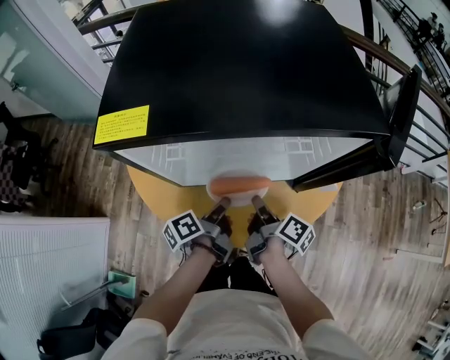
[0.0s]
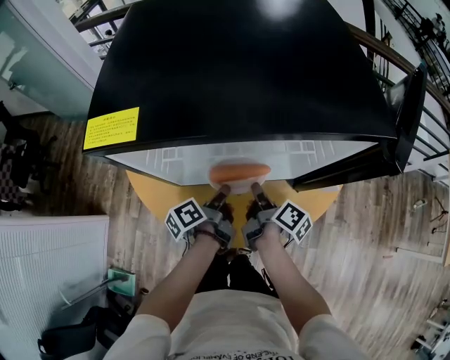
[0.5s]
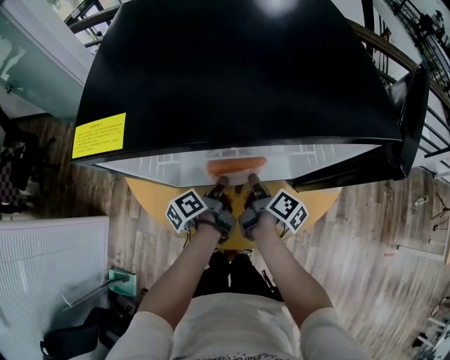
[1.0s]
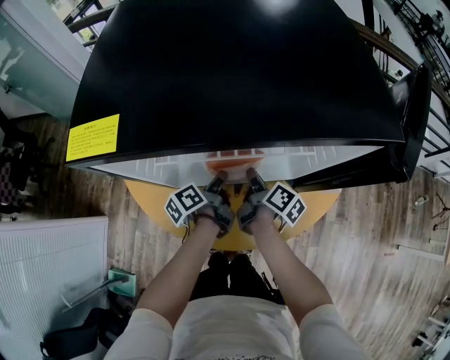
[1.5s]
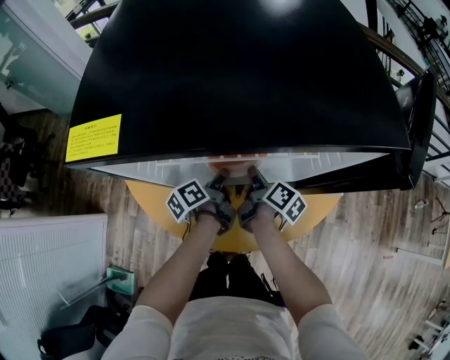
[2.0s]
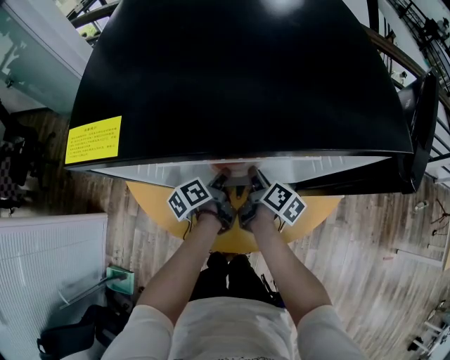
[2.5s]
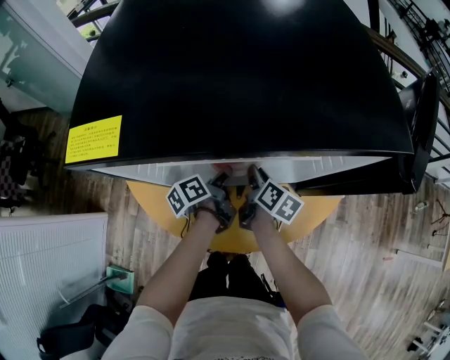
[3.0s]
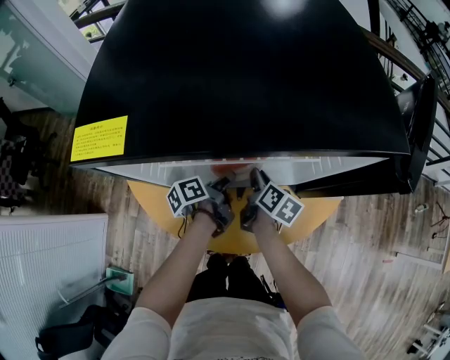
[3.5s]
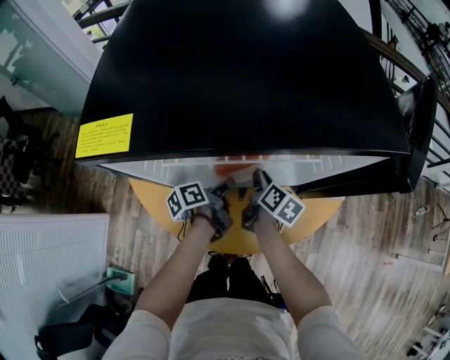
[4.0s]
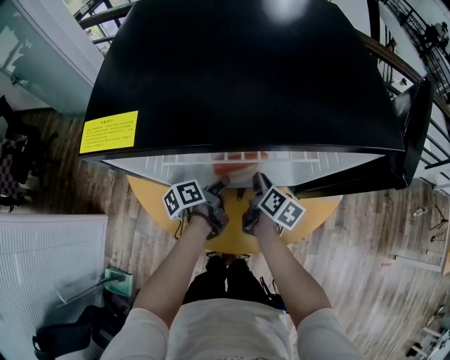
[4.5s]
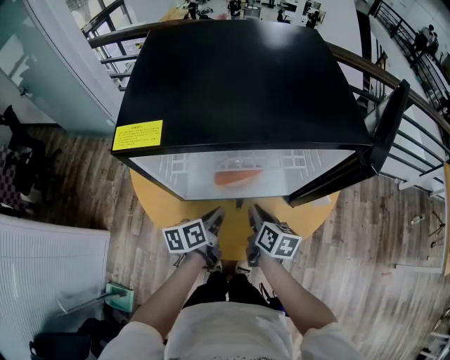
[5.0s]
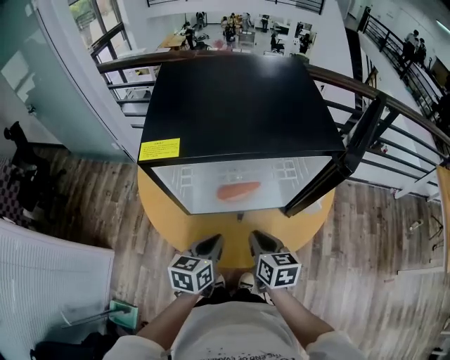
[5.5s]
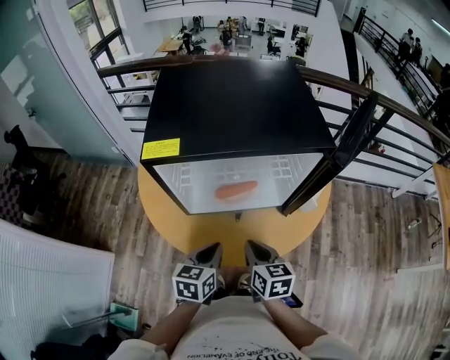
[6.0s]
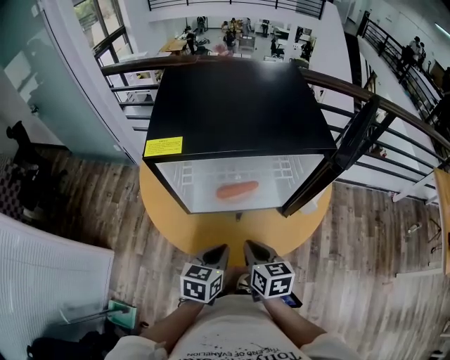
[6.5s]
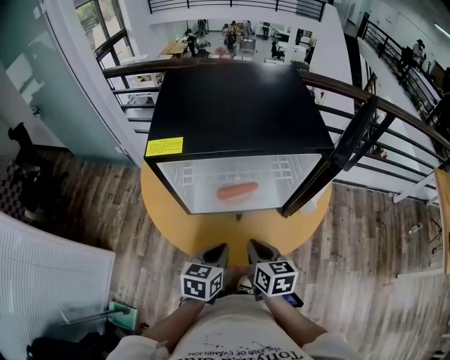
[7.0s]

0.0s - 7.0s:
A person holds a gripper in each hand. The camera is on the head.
0.0s - 2.0s: The right gripper ends up some 10 cm from where it was.
3.5s - 5.0s: The right gripper ends up some 10 cm from where it was.
5.0s - 7.0s: The right gripper changes place by about 15 cm.

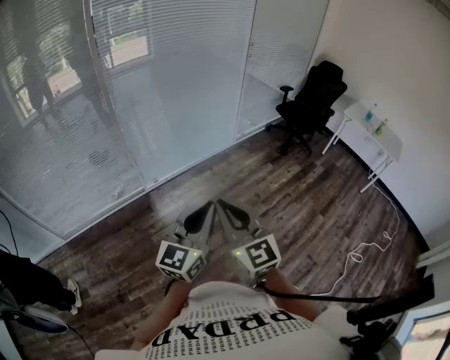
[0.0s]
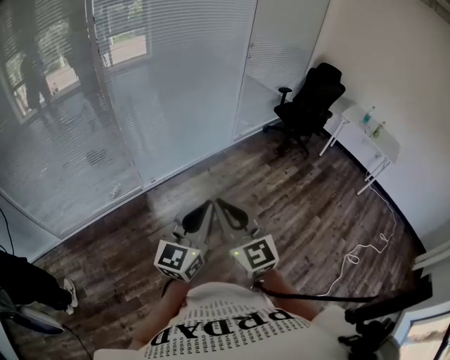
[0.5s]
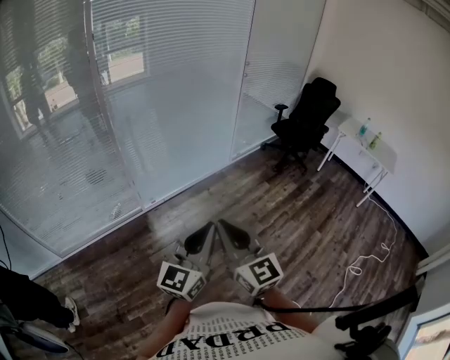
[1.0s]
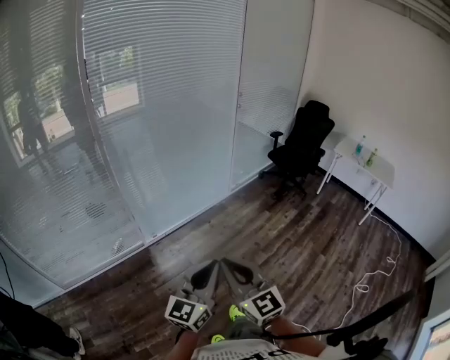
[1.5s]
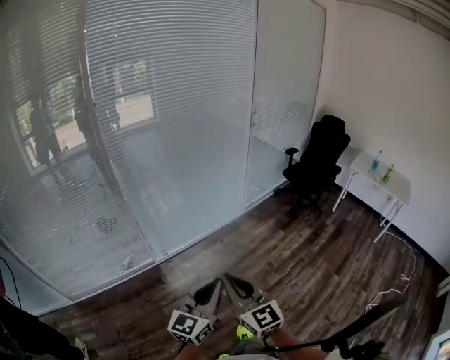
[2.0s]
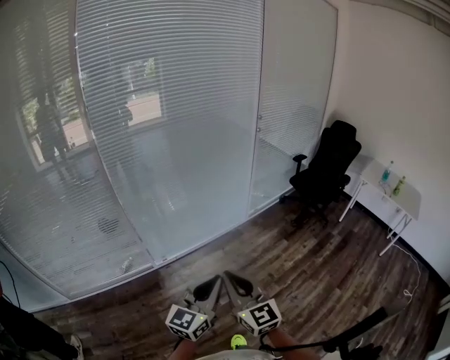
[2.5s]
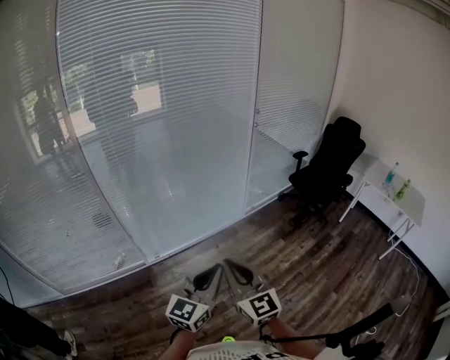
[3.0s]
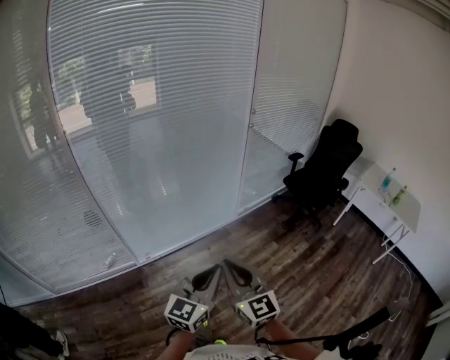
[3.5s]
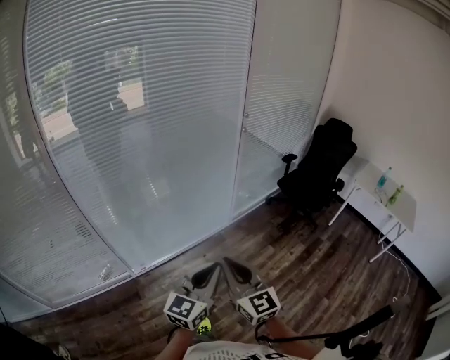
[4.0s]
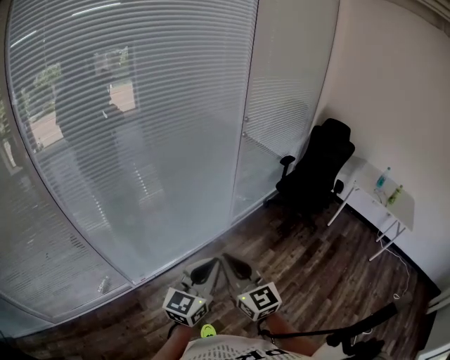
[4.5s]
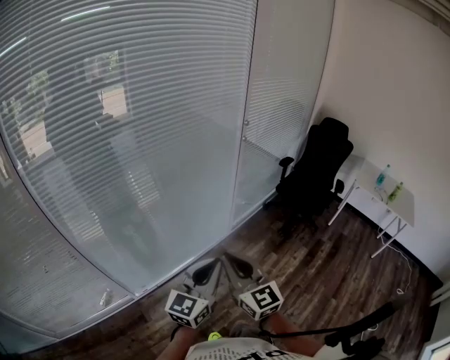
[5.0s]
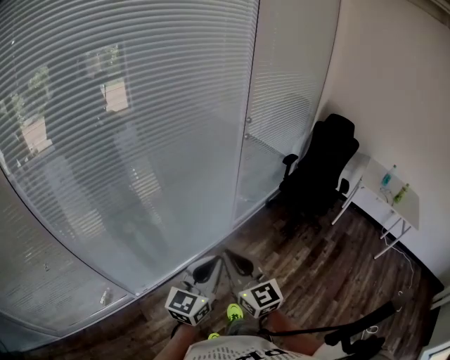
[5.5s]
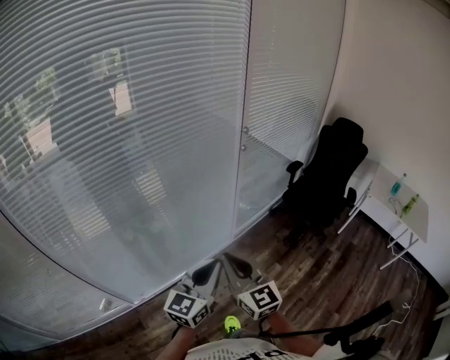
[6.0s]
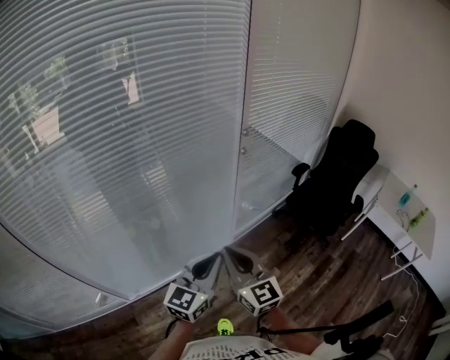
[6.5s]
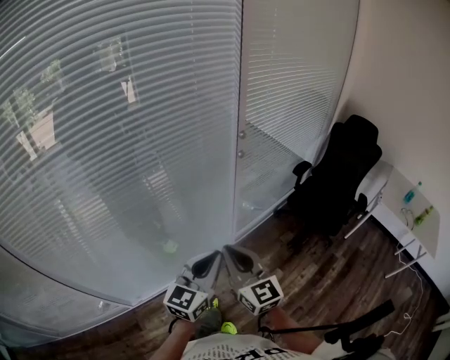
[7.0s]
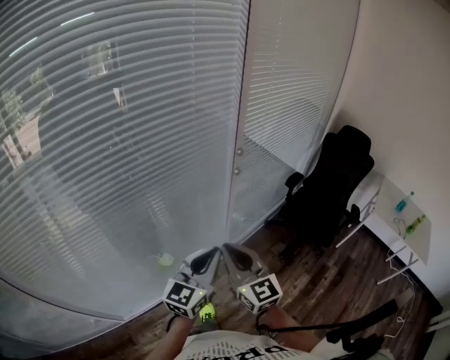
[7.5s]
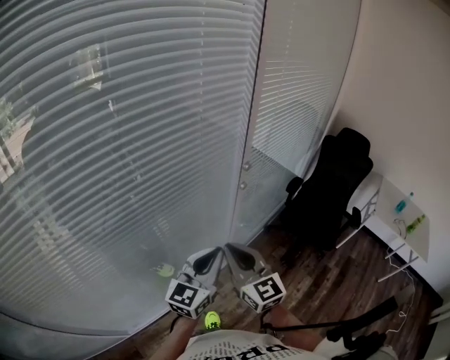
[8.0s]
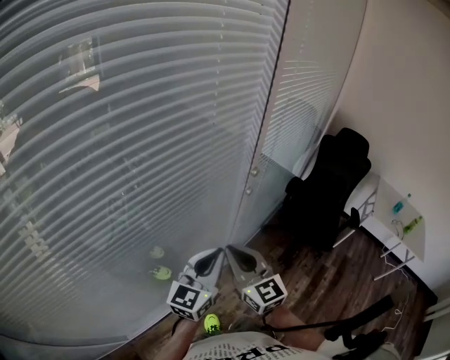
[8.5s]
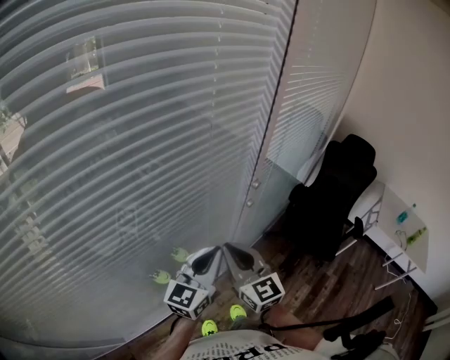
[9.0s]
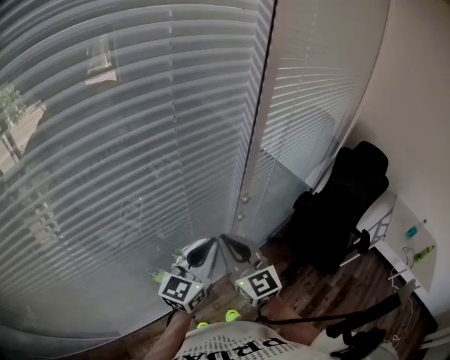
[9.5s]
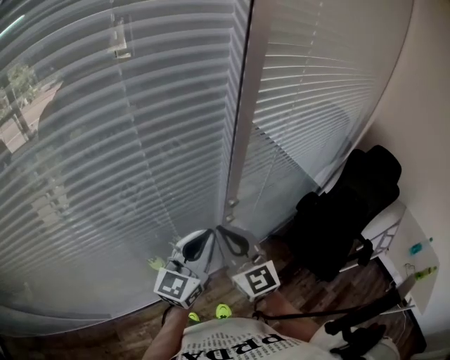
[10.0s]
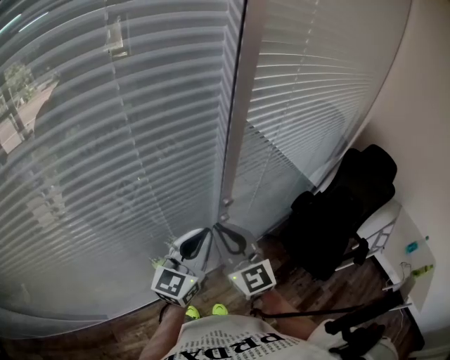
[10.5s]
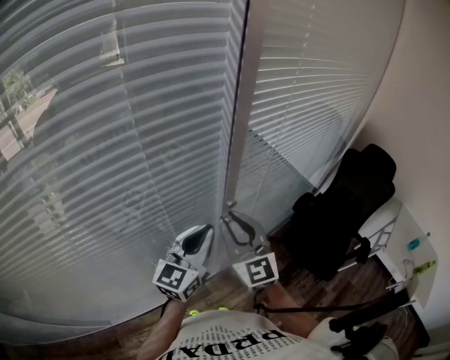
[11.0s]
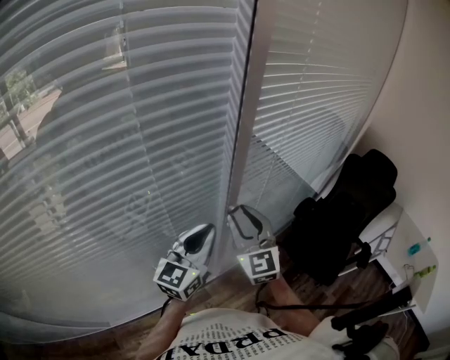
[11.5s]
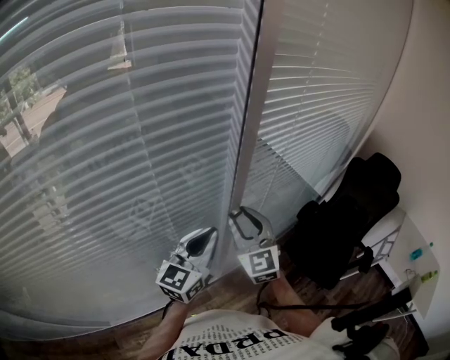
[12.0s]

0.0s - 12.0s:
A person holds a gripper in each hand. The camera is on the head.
0.0s - 2.0s: The grippers both shift forward by about 10 cm.
2.0s - 4.0s: Both grippers move forward and to the right, roughly 35 cm.
4.0s - 6.0s: The two grippers go about 30 cm forward.
6.0s - 8.0s: Both grippers travel together forward, about 30 cm.
8.0s - 10.0s: Both grippers move forward, some 20 cm.
10.0s - 12.0s: The right gripper travels forward by some 10 cm, and opens.

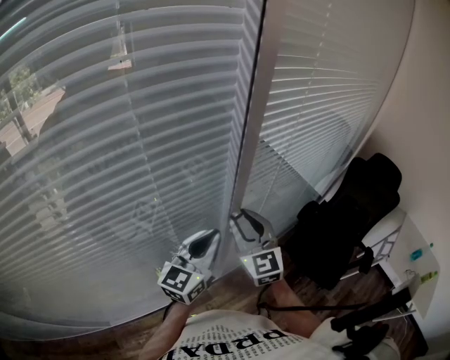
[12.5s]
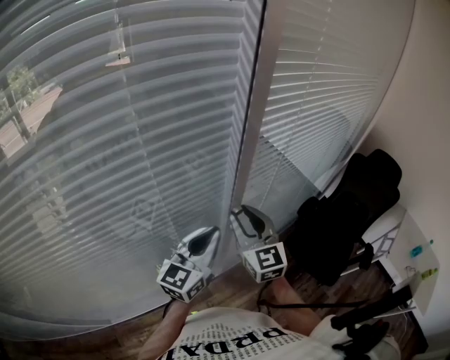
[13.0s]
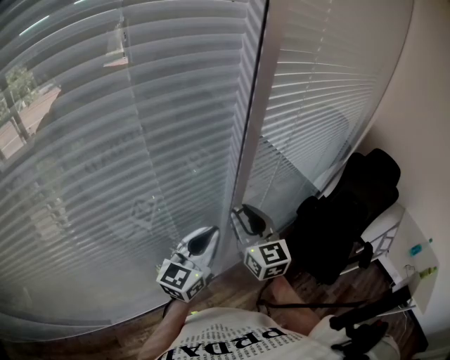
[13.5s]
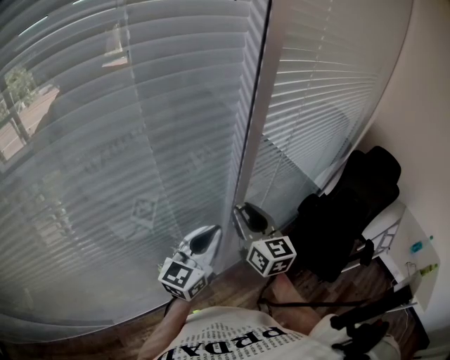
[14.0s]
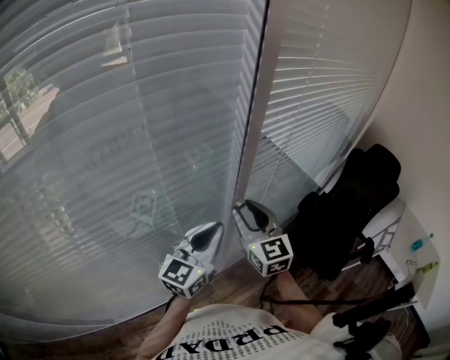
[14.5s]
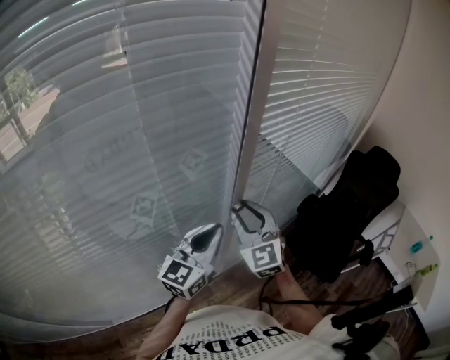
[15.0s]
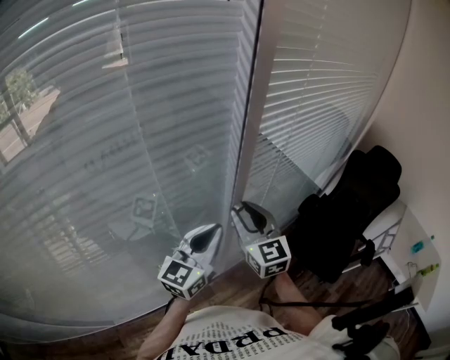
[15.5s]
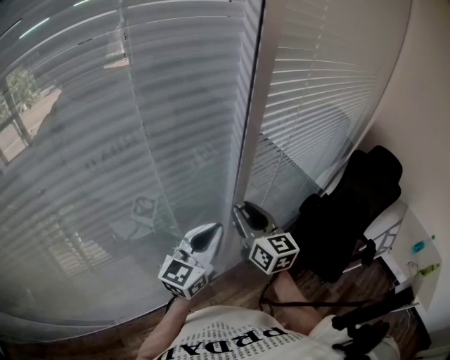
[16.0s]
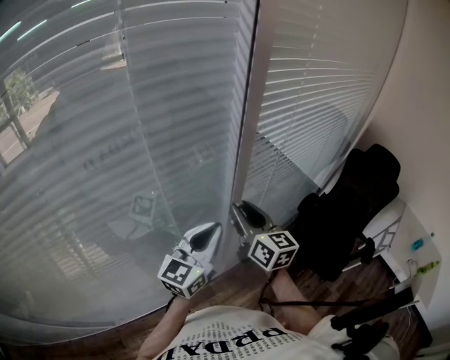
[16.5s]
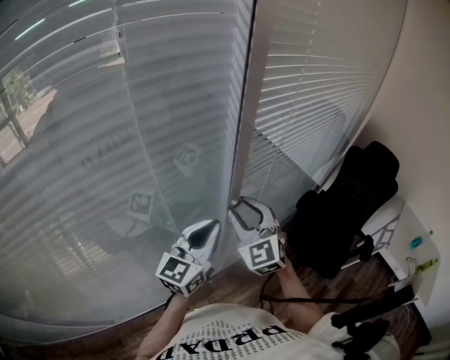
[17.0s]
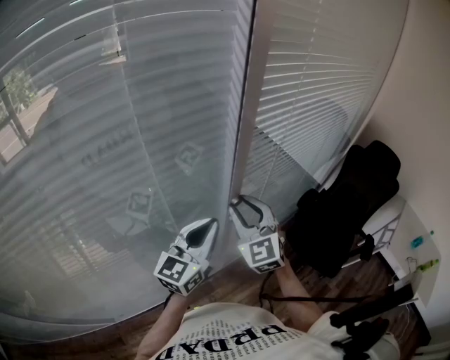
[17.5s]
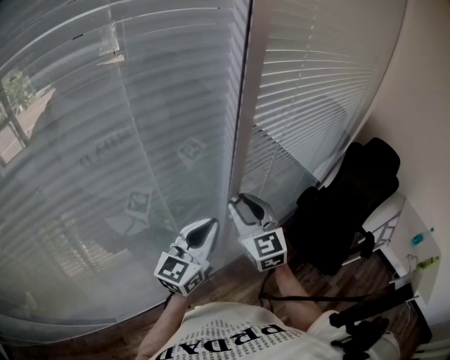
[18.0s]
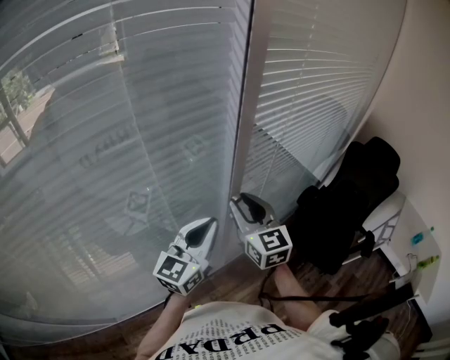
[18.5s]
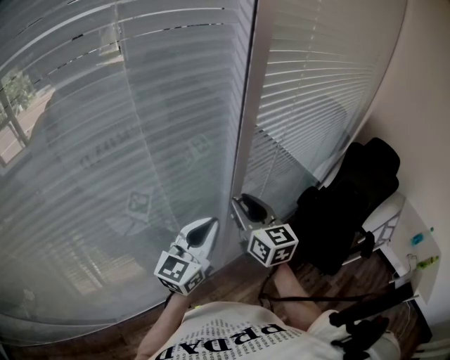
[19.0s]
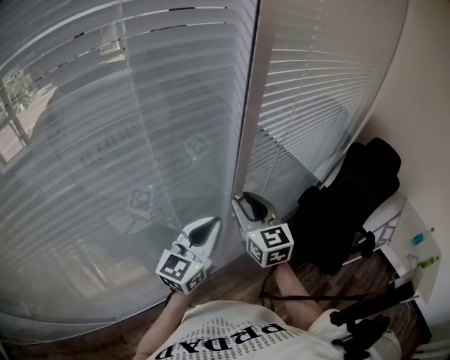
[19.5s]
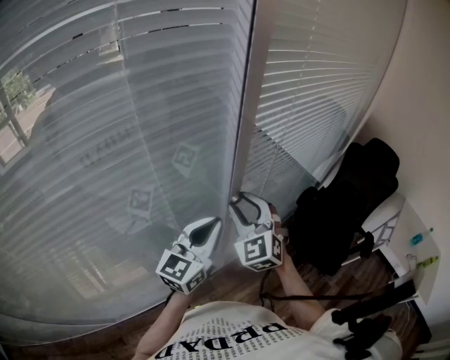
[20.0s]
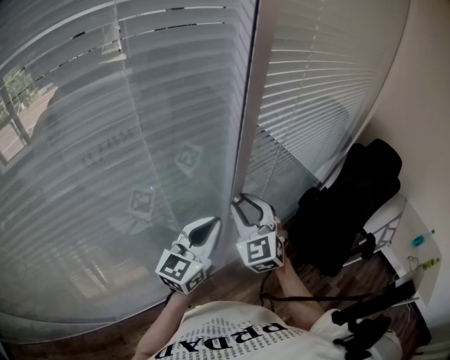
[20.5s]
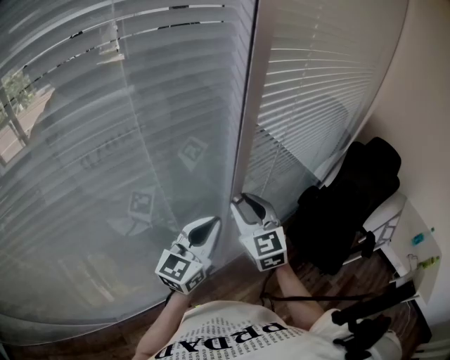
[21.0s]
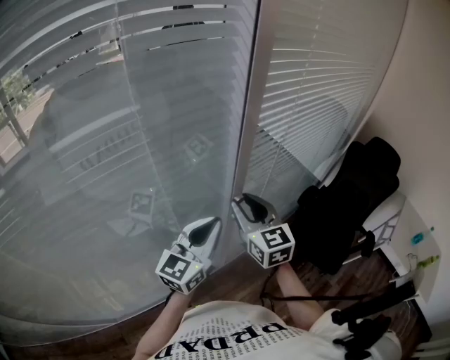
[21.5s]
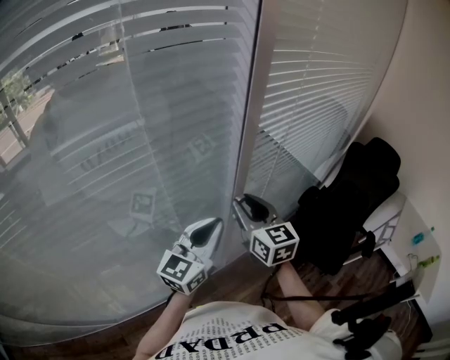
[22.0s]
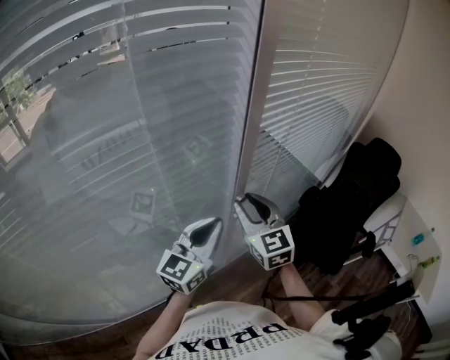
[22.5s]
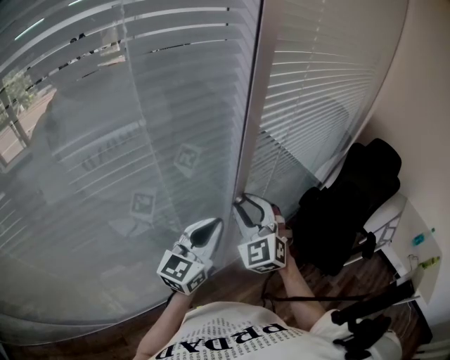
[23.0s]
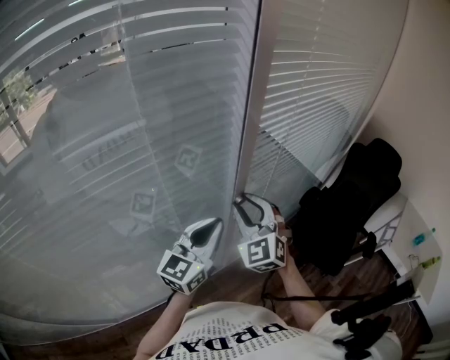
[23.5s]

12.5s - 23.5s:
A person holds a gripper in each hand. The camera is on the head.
16.0s - 18.0s: The right gripper rotates about 30 degrees.
18.0s - 20.0s: The right gripper turns by some 30 degrees.
20.0s - 21.5s: The right gripper changes its angle by approximately 40 degrees.
21.5s - 23.5s: The right gripper turns by some 40 degrees.
